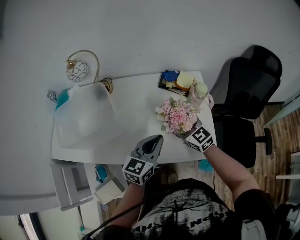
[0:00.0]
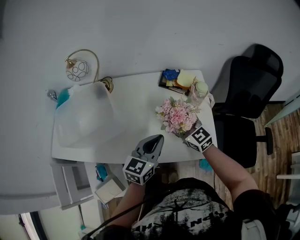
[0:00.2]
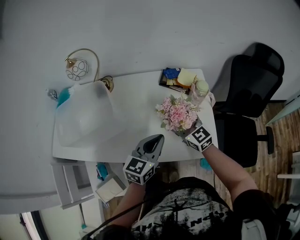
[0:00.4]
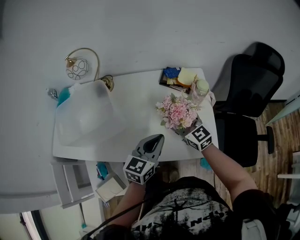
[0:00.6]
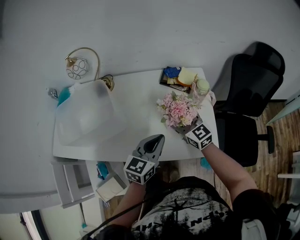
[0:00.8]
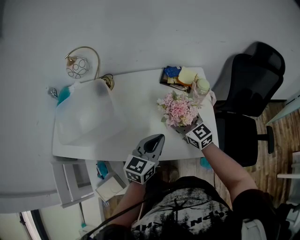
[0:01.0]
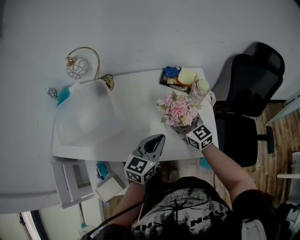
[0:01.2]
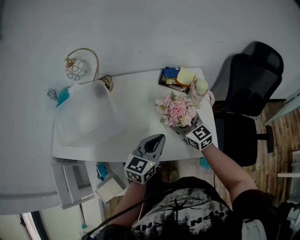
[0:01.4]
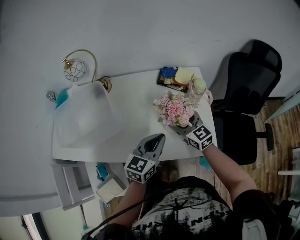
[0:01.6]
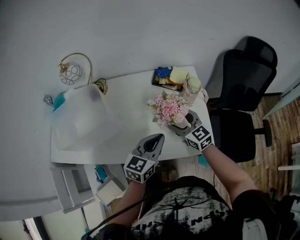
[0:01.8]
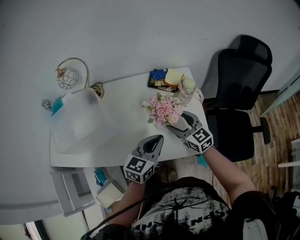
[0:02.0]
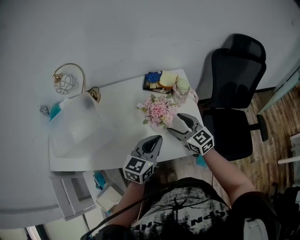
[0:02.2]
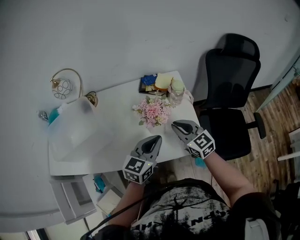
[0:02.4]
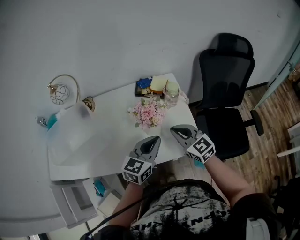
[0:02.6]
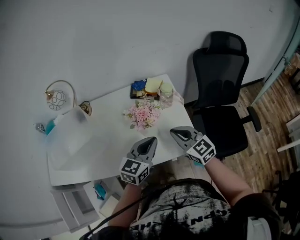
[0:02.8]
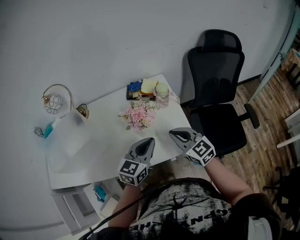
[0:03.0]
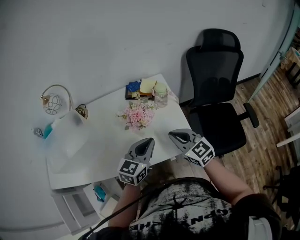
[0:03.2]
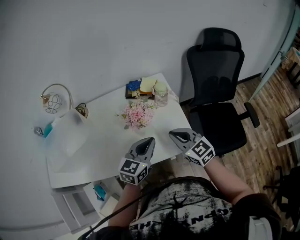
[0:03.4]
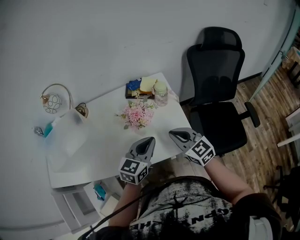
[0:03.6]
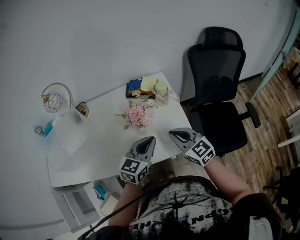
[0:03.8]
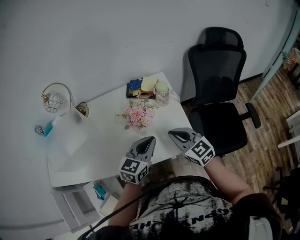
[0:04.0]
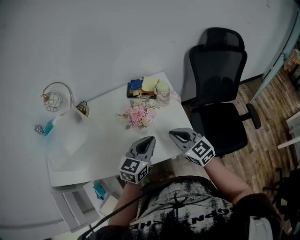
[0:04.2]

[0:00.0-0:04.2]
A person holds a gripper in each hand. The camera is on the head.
0:00.0 to 0:01.4: The grippers make only small movements.
0:01.4 to 0:02.8: The right gripper shifts some 15 cm to the right and backward, and closes; the left gripper travels to the right by roughly 5 cm.
0:02.8 to 0:04.2: The grippers make only small movements.

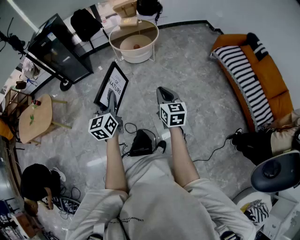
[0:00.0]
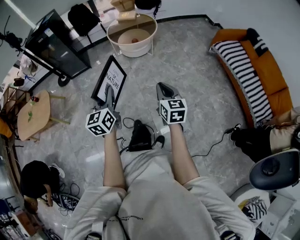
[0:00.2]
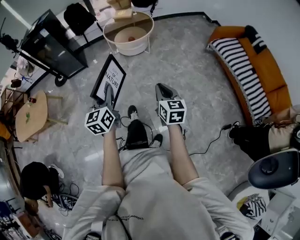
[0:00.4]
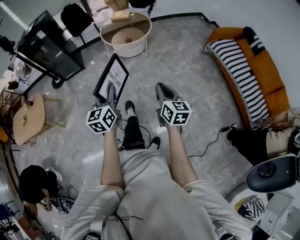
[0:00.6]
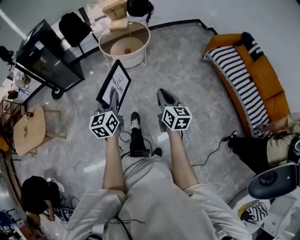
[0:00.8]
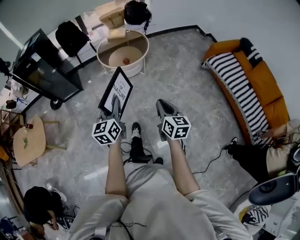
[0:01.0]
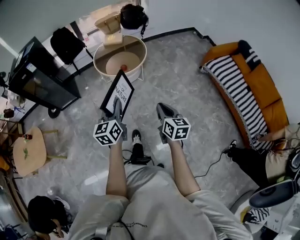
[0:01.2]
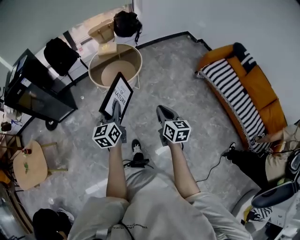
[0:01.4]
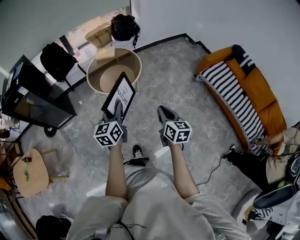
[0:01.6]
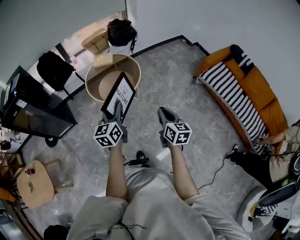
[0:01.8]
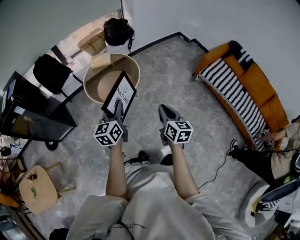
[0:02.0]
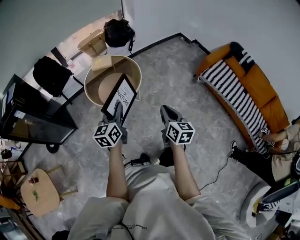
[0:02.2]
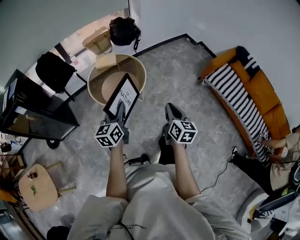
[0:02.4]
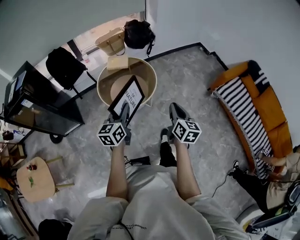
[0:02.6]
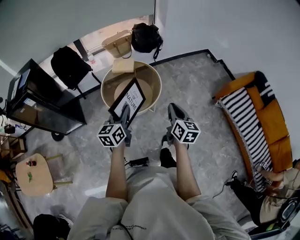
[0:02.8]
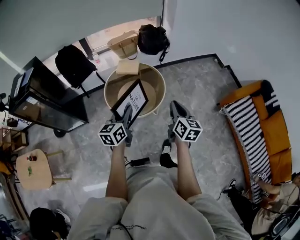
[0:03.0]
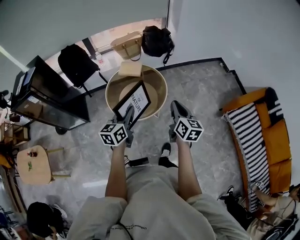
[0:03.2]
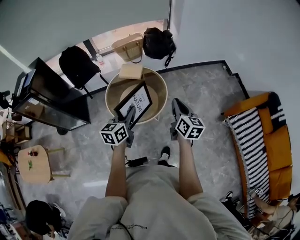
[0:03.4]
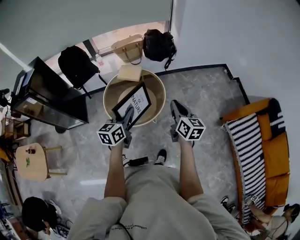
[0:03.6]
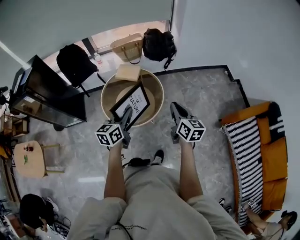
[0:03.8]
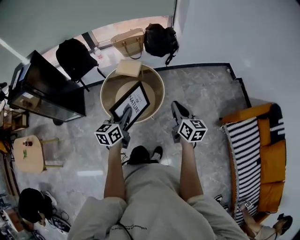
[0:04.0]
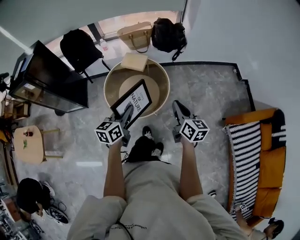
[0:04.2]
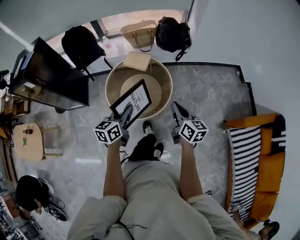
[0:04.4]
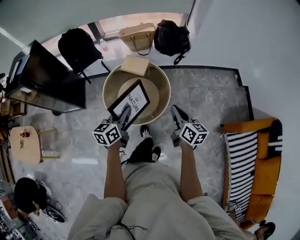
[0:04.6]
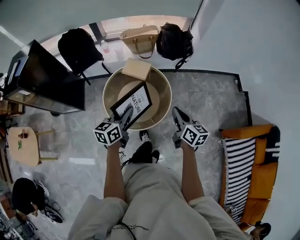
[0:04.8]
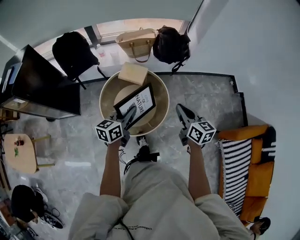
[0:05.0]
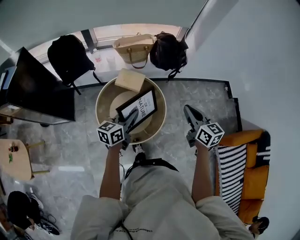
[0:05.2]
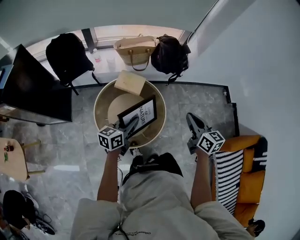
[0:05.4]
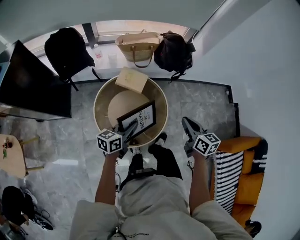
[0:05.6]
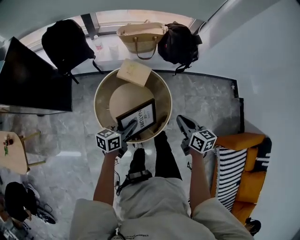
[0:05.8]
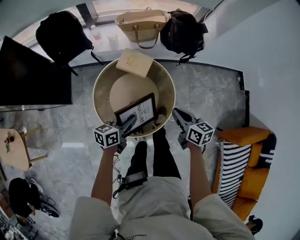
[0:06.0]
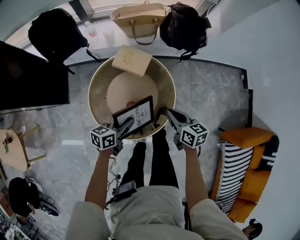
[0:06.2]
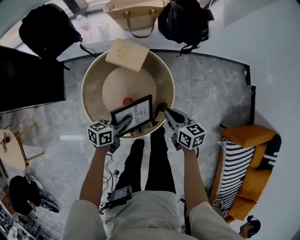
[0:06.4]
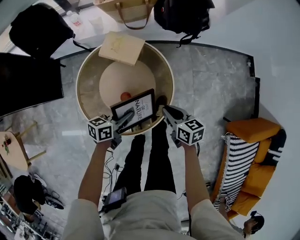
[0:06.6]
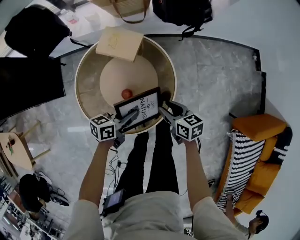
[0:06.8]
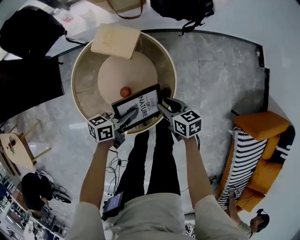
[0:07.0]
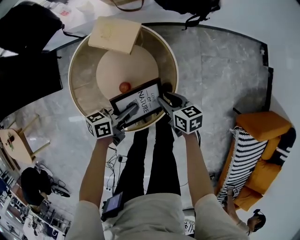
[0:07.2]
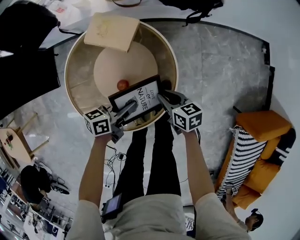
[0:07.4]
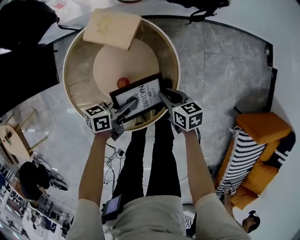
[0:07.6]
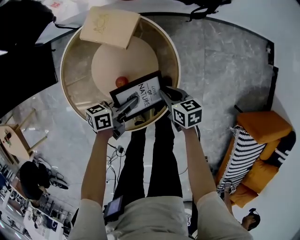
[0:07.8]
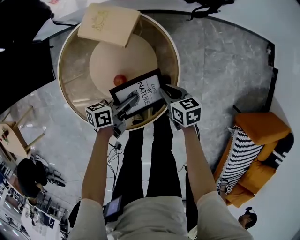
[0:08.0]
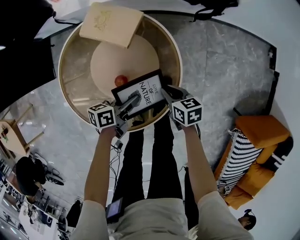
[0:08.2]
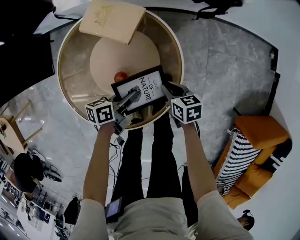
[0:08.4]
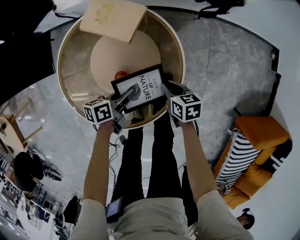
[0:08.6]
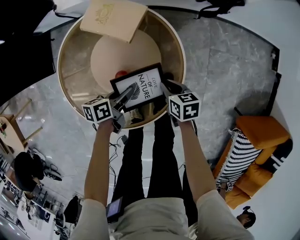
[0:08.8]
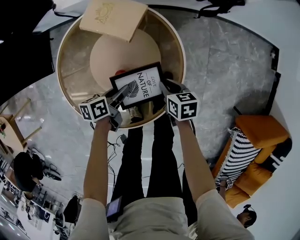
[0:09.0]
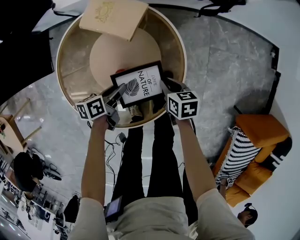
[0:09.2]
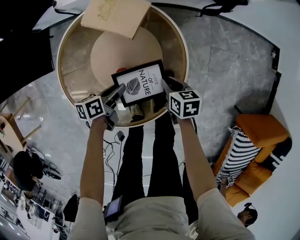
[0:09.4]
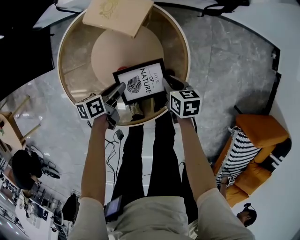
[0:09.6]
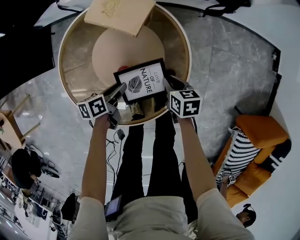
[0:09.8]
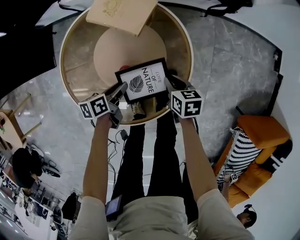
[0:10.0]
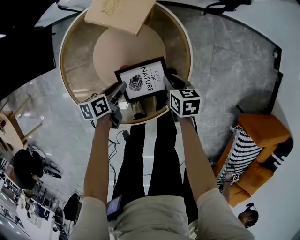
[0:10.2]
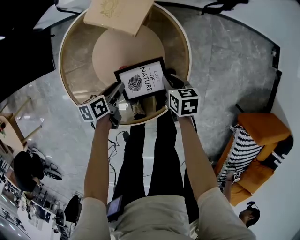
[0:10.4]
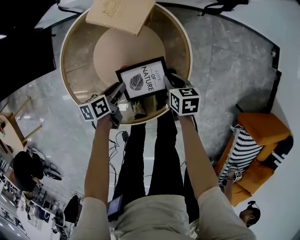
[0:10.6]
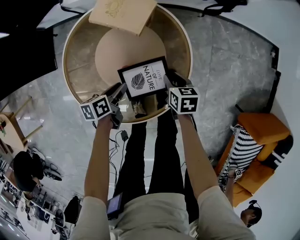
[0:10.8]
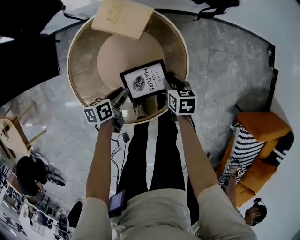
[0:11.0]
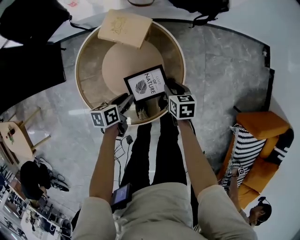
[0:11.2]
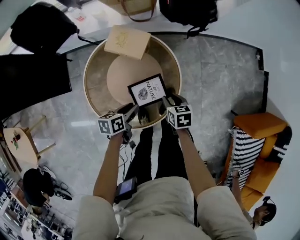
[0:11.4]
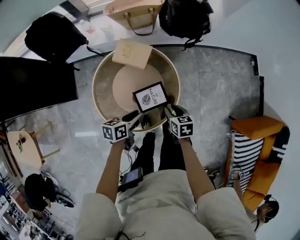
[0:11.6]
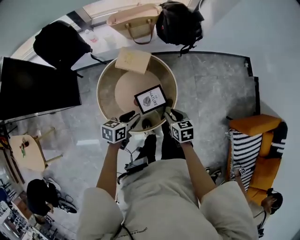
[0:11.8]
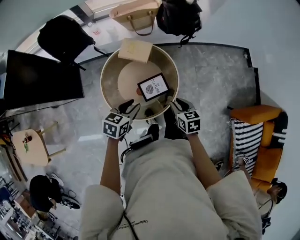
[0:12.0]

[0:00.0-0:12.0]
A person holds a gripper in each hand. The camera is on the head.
0:00.0 to 0:01.6: The two grippers go some 40 cm forward.
0:01.6 to 0:03.0: Both grippers move forward, roughly 30 cm.
0:03.0 to 0:04.4: The right gripper travels forward by some 20 cm, and rotates roughly 30 degrees; the left gripper goes approximately 15 cm forward, to the right and downward.
0:04.4 to 0:06.0: The two grippers go approximately 25 cm forward and downward. The left gripper changes its angle by approximately 20 degrees; the right gripper rotates roughly 20 degrees.
0:06.0 to 0:07.6: The right gripper goes roughly 30 cm downward. Meanwhile the left gripper moves downward and to the right, approximately 25 cm.
0:07.6 to 0:09.0: The grippers both shift downward by about 5 cm. The left gripper swivels approximately 30 degrees, and opens its fingers.
0:09.0 to 0:10.4: There are only small adjustments of the grippers.
0:10.4 to 0:12.0: Both grippers travel together upward, about 40 cm. The left gripper rolls clockwise, seen from behind, by about 50 degrees.

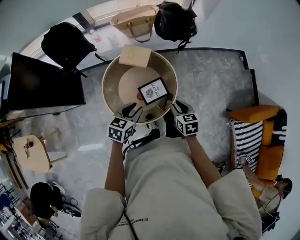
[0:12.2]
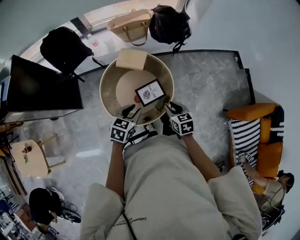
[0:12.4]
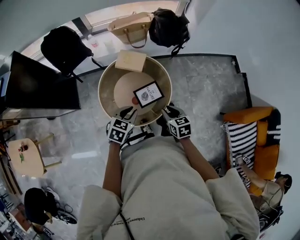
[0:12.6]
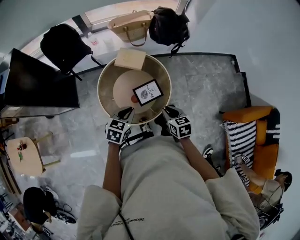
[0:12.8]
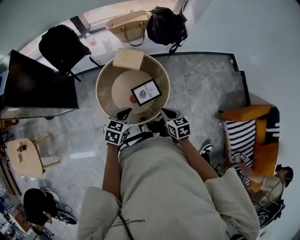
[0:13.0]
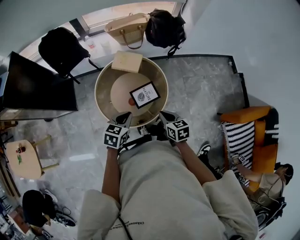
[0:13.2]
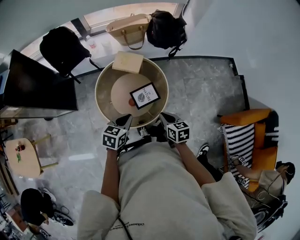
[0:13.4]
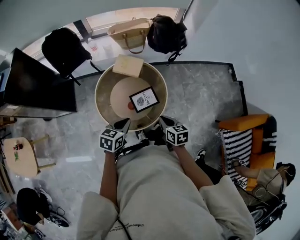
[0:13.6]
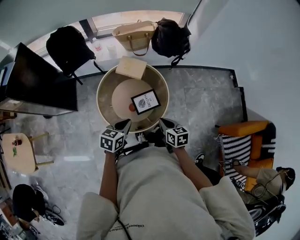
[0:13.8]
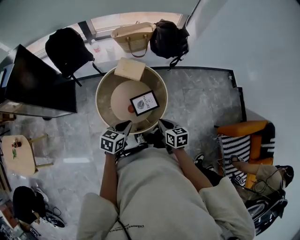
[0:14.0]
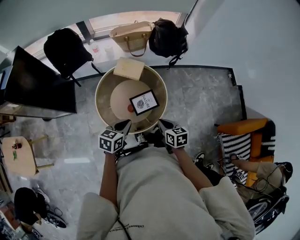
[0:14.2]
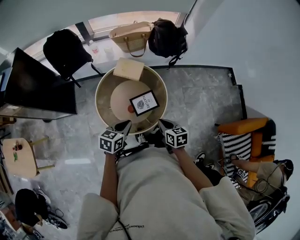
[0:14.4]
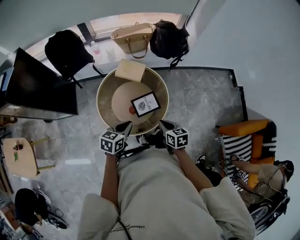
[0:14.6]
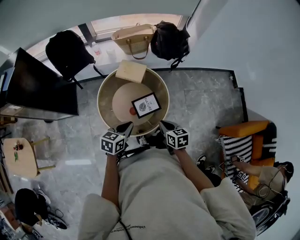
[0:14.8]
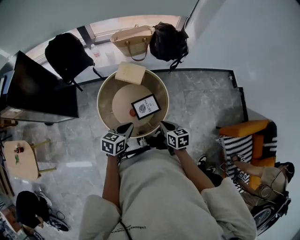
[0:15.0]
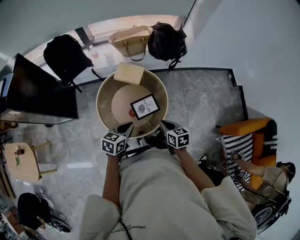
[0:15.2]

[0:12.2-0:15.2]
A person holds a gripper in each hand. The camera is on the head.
0:12.2 to 0:13.8: Both grippers move backward, some 5 cm. The left gripper closes. Meanwhile the right gripper closes up.
0:13.8 to 0:15.2: The grippers make only small movements.

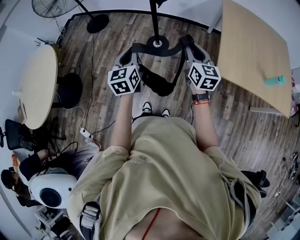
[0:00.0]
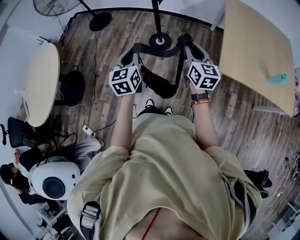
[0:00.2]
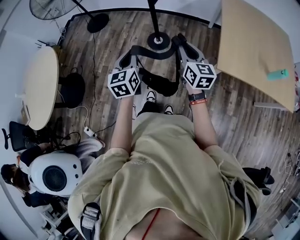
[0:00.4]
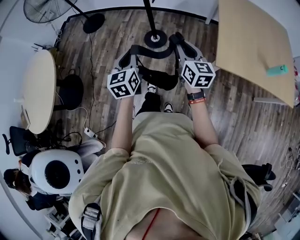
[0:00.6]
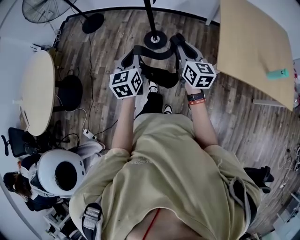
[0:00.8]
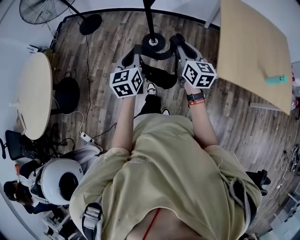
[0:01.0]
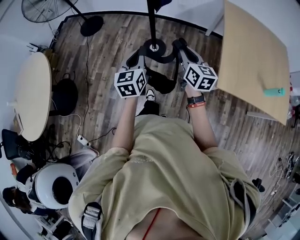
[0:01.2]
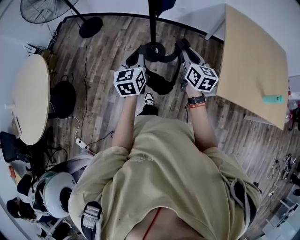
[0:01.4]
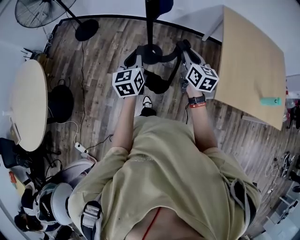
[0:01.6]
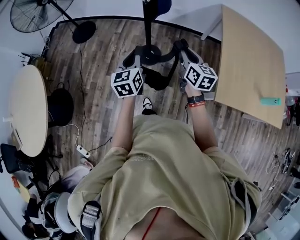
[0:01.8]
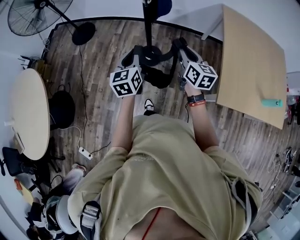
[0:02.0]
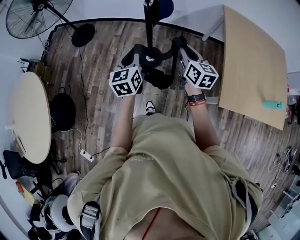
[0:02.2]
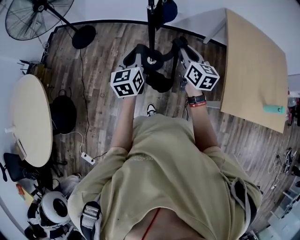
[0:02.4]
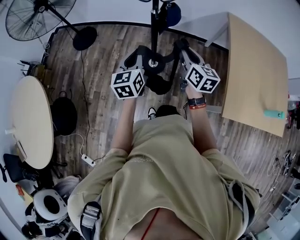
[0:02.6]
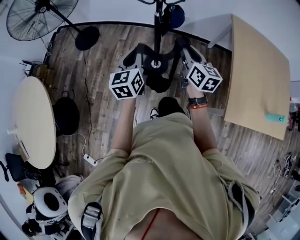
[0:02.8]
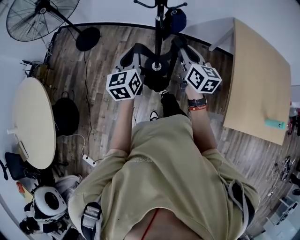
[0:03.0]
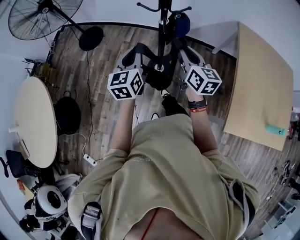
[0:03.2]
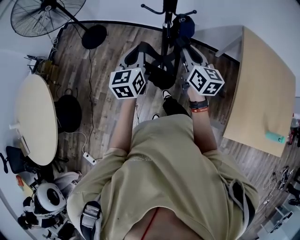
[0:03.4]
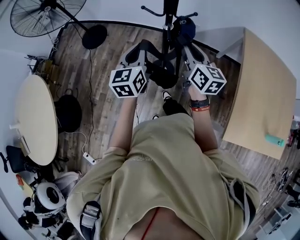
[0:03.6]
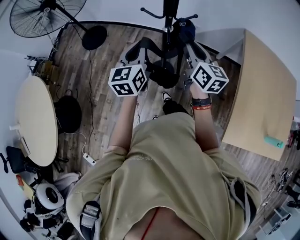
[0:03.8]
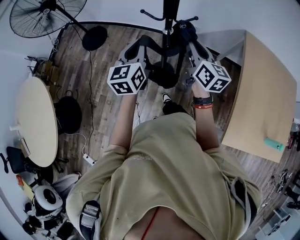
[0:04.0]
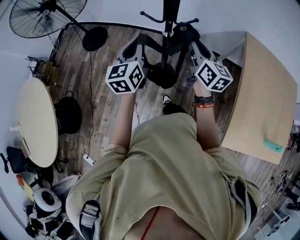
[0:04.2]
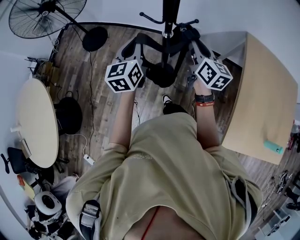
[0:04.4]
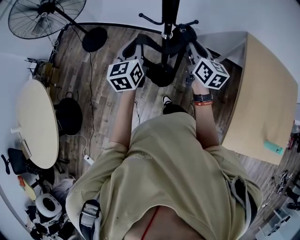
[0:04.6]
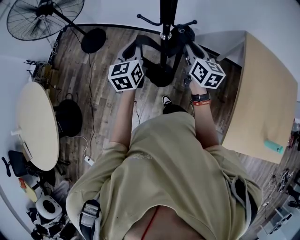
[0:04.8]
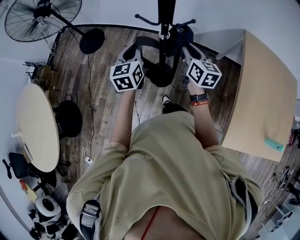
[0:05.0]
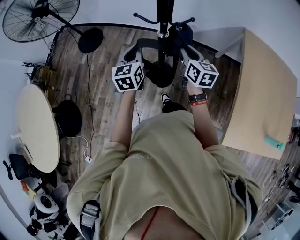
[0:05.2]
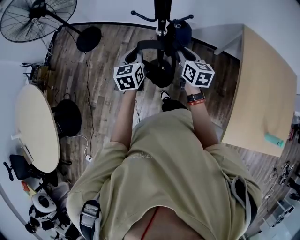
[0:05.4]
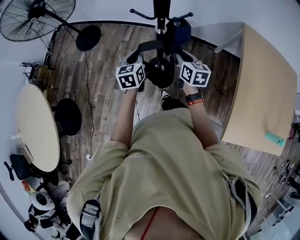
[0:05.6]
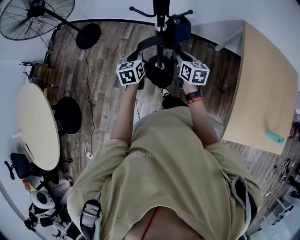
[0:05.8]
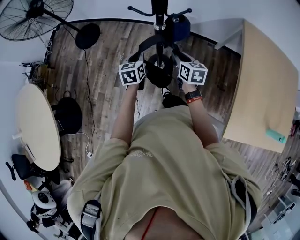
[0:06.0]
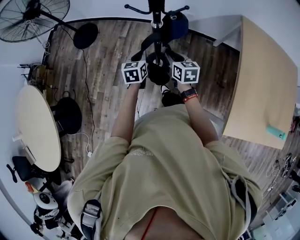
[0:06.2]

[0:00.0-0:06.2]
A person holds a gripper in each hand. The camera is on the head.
0:00.0 to 0:01.6: Both grippers move forward, roughly 20 cm.
0:01.6 to 0:03.2: Both grippers move forward, about 25 cm.
0:03.2 to 0:04.6: Both grippers move forward, some 15 cm.
0:04.6 to 0:06.2: Both grippers travel together downward, roughly 20 cm. The right gripper changes its angle by roughly 20 degrees, while the left gripper rotates about 20 degrees.
